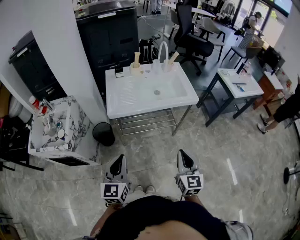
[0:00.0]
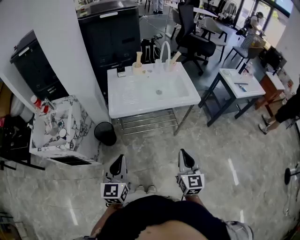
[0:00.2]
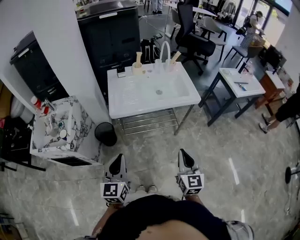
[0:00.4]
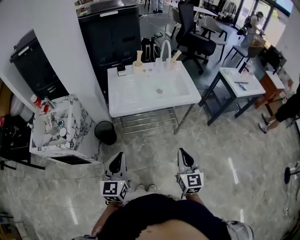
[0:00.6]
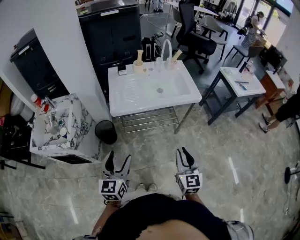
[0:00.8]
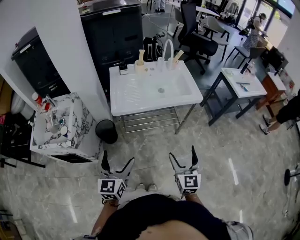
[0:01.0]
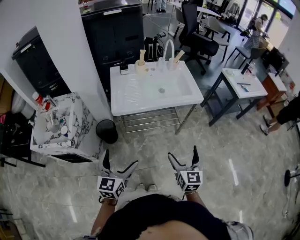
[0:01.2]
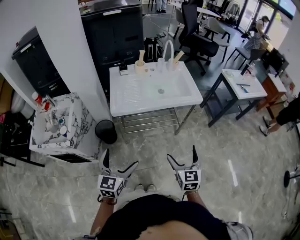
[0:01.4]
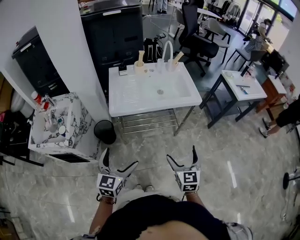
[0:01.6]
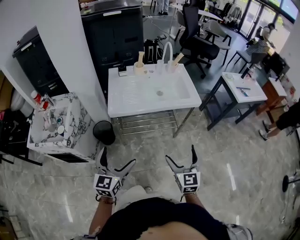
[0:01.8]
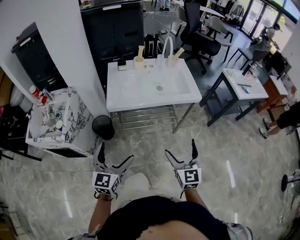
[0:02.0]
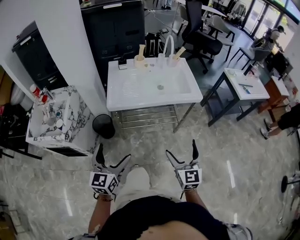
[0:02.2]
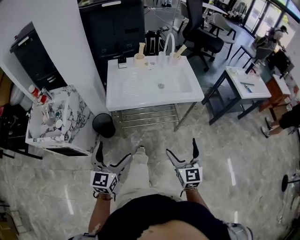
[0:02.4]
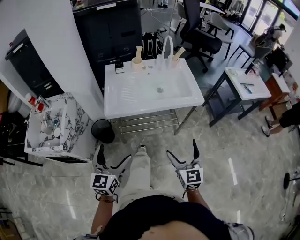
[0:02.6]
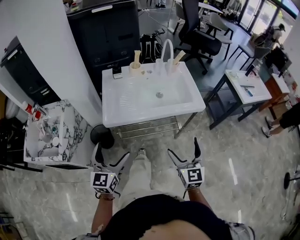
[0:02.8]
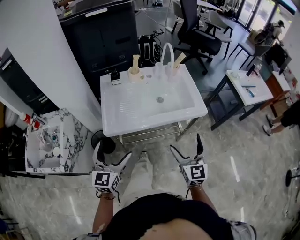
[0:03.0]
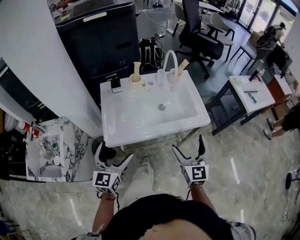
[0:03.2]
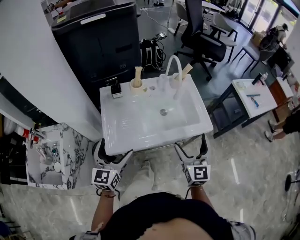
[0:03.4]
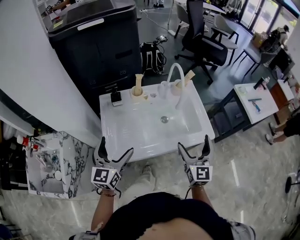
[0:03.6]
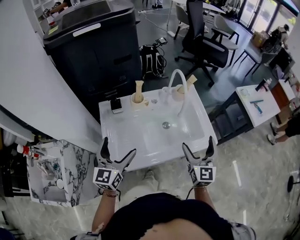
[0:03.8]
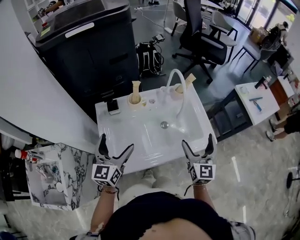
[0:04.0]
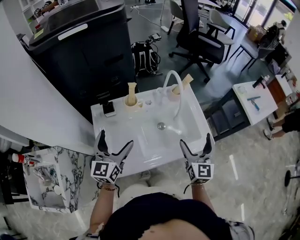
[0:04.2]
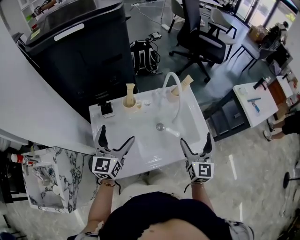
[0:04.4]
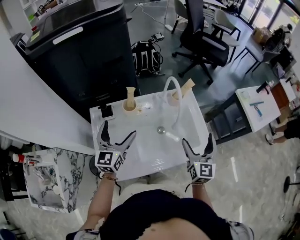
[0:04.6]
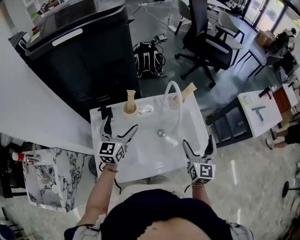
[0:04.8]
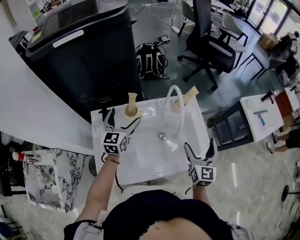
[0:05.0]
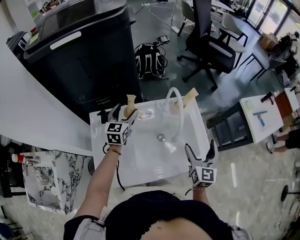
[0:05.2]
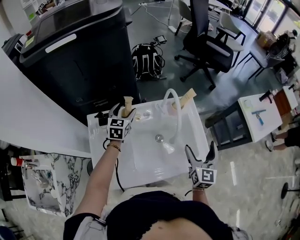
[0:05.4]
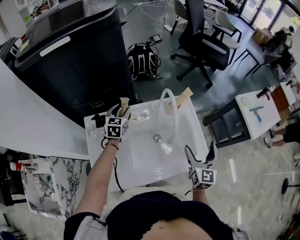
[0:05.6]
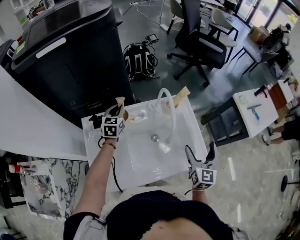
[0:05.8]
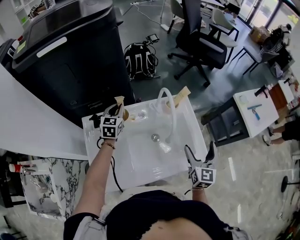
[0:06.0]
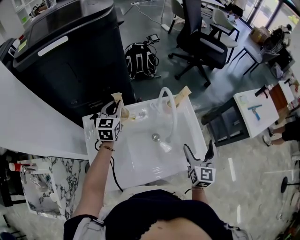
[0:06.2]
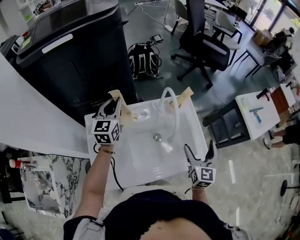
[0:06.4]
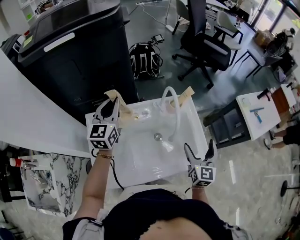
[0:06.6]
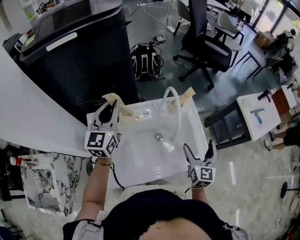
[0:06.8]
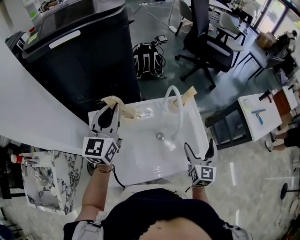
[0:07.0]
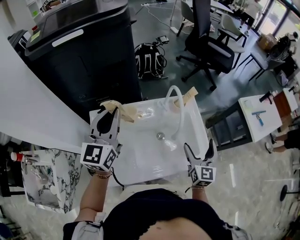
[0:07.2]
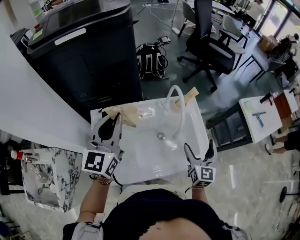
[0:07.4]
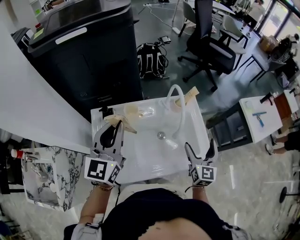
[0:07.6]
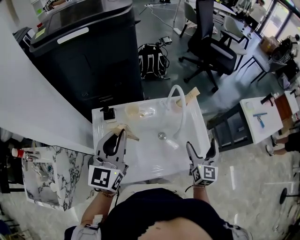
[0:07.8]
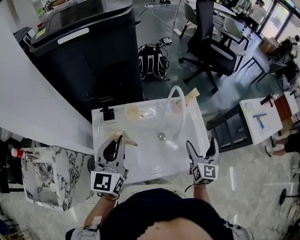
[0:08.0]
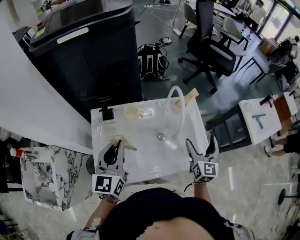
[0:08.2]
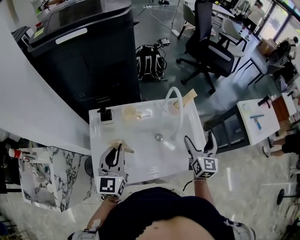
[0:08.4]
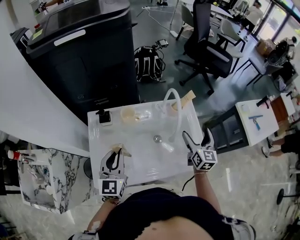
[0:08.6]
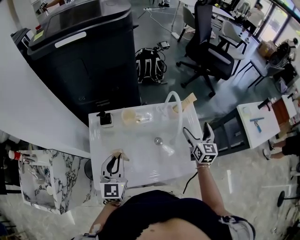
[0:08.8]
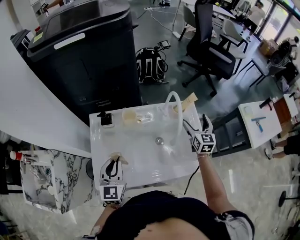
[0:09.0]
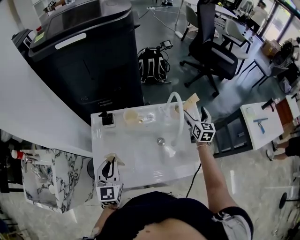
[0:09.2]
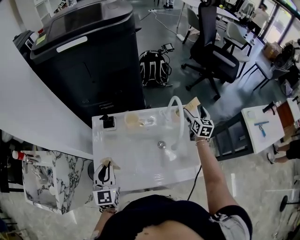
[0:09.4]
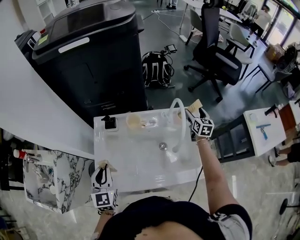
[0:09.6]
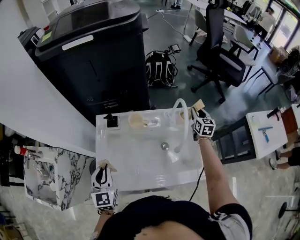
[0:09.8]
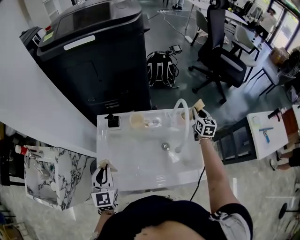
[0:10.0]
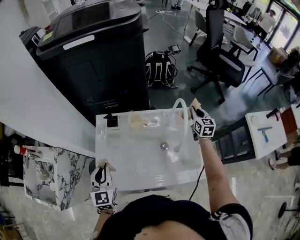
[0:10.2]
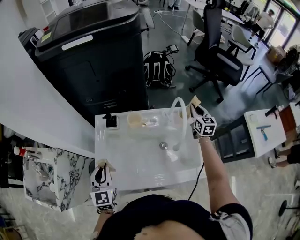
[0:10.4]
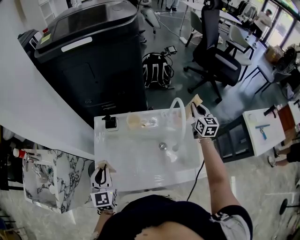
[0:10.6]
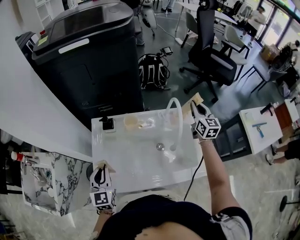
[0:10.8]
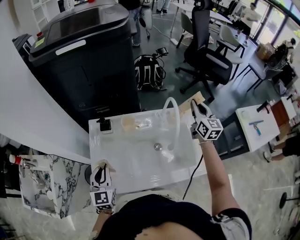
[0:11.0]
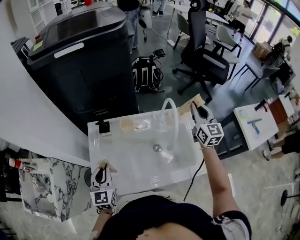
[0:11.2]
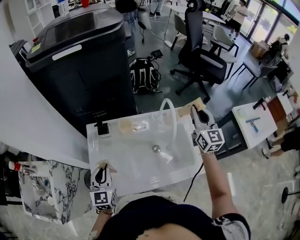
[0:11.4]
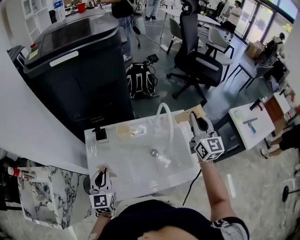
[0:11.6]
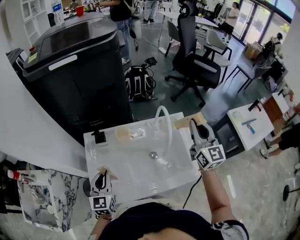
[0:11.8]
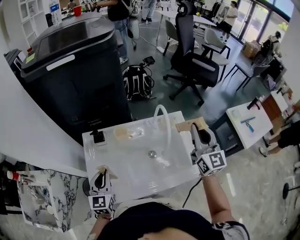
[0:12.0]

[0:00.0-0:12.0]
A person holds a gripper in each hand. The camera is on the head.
0:00.0 to 0:01.6: The left gripper opens up; the right gripper opens.
0:01.6 to 0:03.0: Both grippers travel together forward, roughly 20 cm.
0:03.0 to 0:04.4: Both grippers move forward, roughly 30 cm.
0:04.4 to 0:06.0: The right gripper moves forward and to the right, some 10 cm; the left gripper heads forward, covering some 25 cm, rotates some 20 degrees, and closes.
0:06.0 to 0:07.6: The left gripper moves upward and backward, roughly 30 cm, and swivels some 30 degrees.
0:07.6 to 0:09.0: The left gripper heads downward and backward, covering approximately 20 cm. The right gripper moves forward, roughly 15 cm.
0:09.0 to 0:10.4: The right gripper moves forward, about 10 cm, and closes; the left gripper heads to the left, covering approximately 5 cm.
0:10.4 to 0:12.0: The right gripper moves backward and upward, some 25 cm, and turns by about 20 degrees.

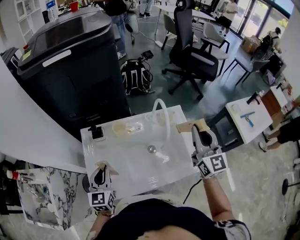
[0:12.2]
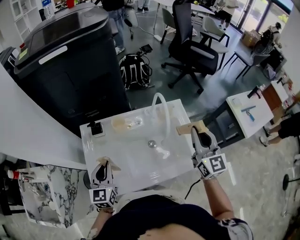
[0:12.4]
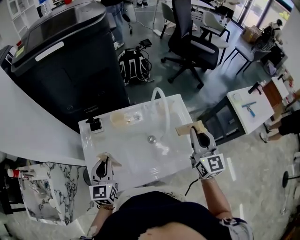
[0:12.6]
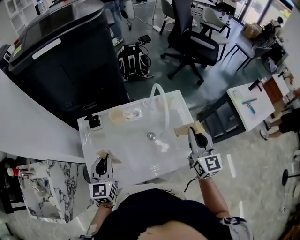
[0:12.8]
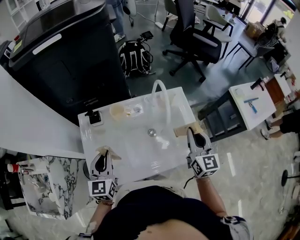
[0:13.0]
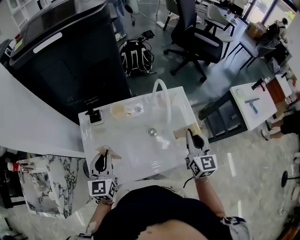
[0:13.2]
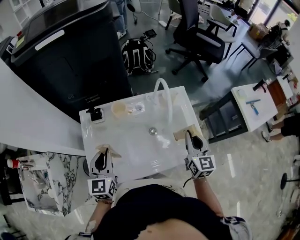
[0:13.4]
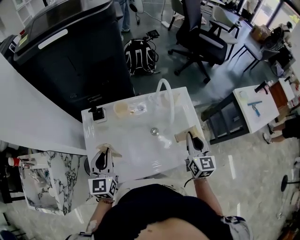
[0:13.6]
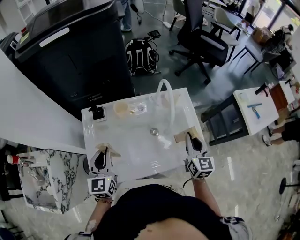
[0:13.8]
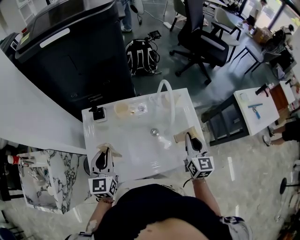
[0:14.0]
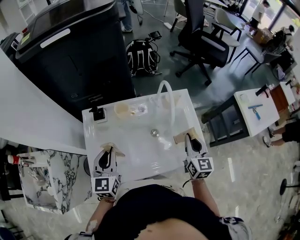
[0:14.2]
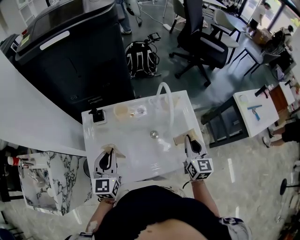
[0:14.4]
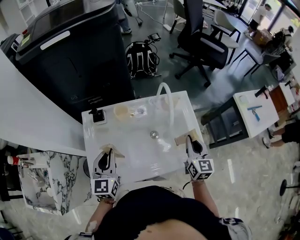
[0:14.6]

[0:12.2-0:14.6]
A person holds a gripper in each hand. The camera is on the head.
0:12.2 to 0:13.4: The right gripper travels downward by roughly 15 cm.
0:13.4 to 0:14.6: The grippers make only small movements.

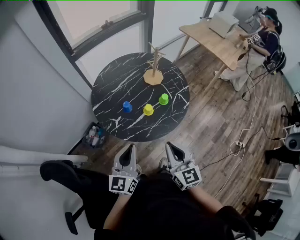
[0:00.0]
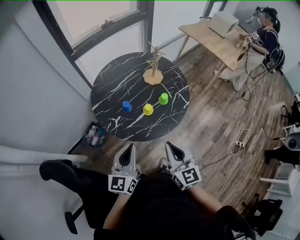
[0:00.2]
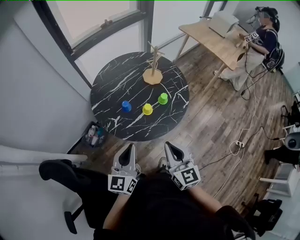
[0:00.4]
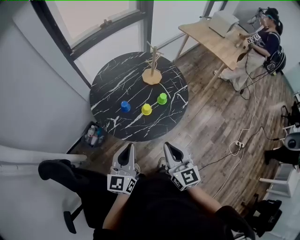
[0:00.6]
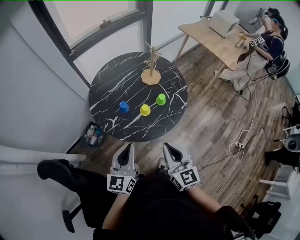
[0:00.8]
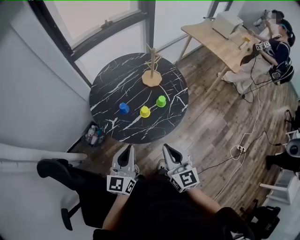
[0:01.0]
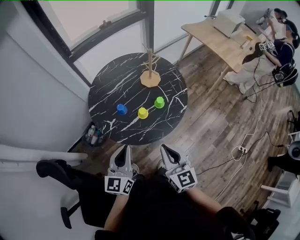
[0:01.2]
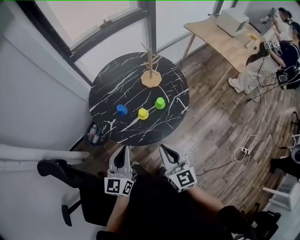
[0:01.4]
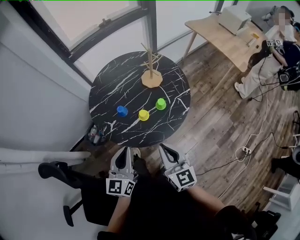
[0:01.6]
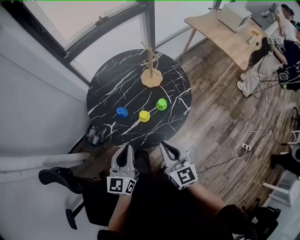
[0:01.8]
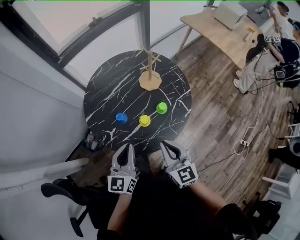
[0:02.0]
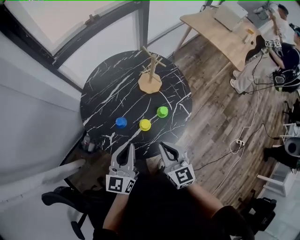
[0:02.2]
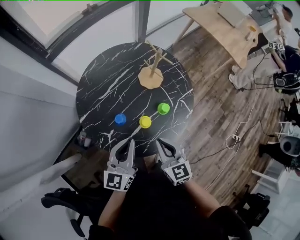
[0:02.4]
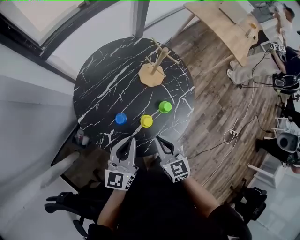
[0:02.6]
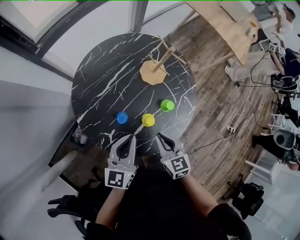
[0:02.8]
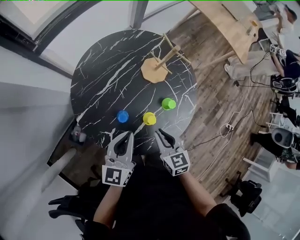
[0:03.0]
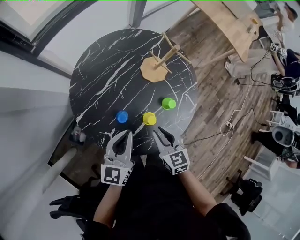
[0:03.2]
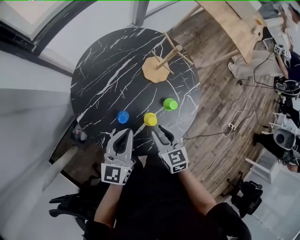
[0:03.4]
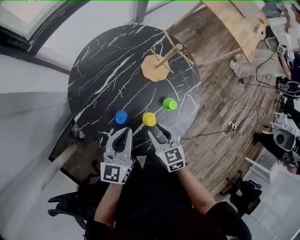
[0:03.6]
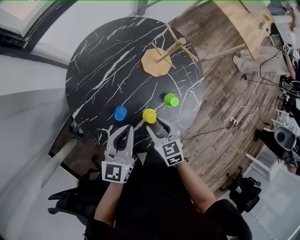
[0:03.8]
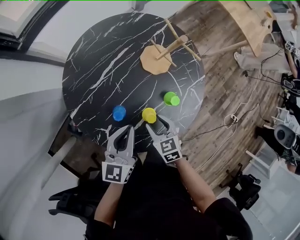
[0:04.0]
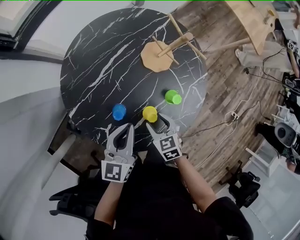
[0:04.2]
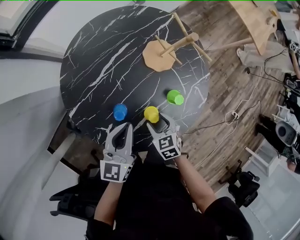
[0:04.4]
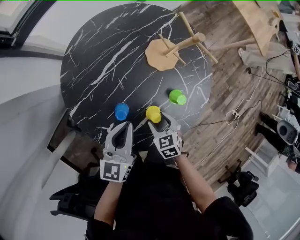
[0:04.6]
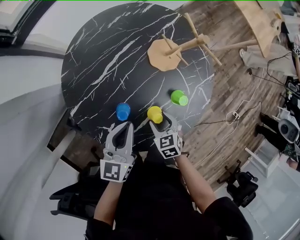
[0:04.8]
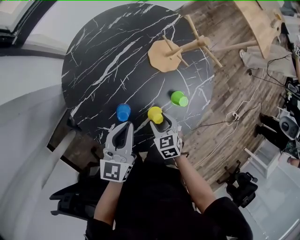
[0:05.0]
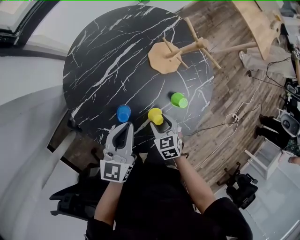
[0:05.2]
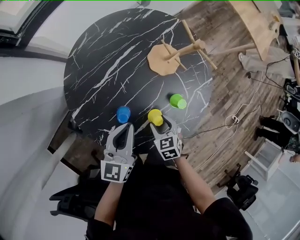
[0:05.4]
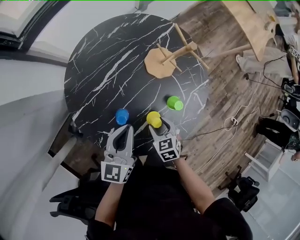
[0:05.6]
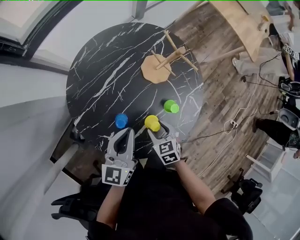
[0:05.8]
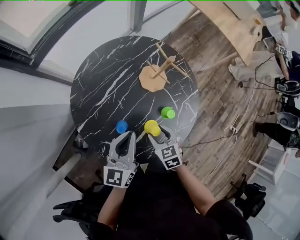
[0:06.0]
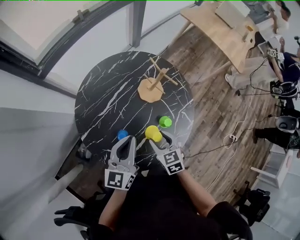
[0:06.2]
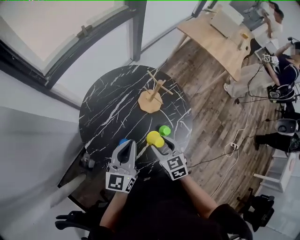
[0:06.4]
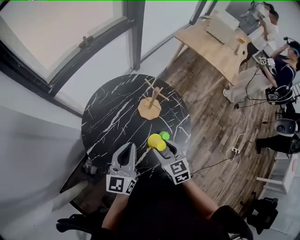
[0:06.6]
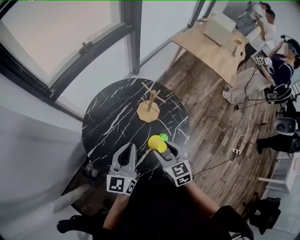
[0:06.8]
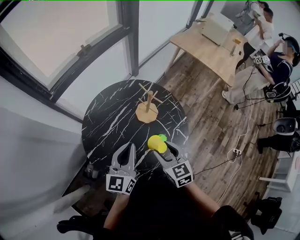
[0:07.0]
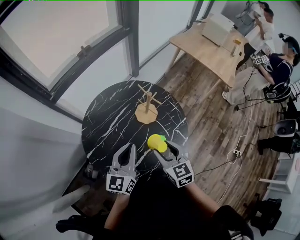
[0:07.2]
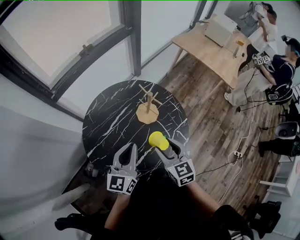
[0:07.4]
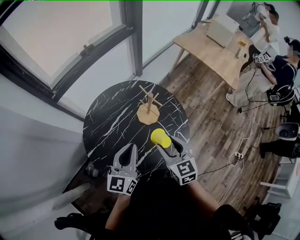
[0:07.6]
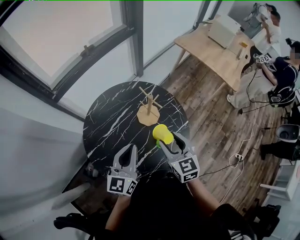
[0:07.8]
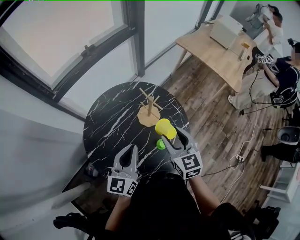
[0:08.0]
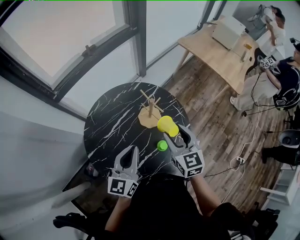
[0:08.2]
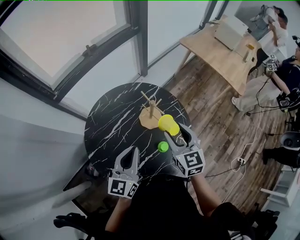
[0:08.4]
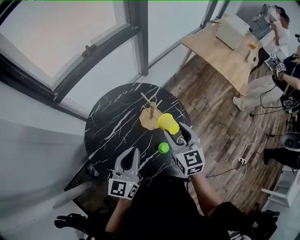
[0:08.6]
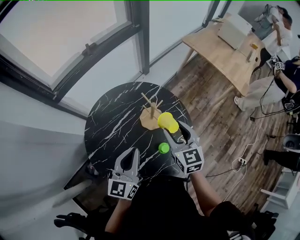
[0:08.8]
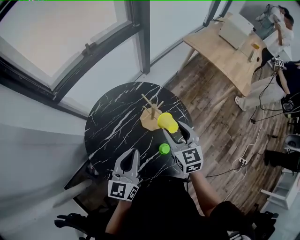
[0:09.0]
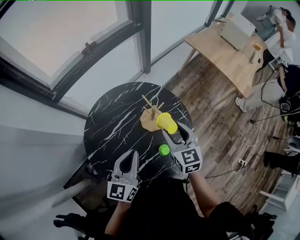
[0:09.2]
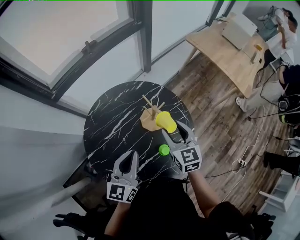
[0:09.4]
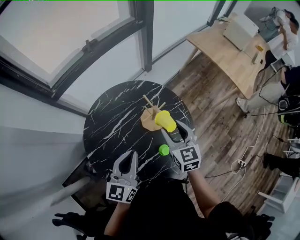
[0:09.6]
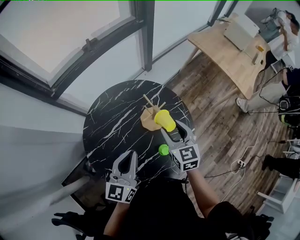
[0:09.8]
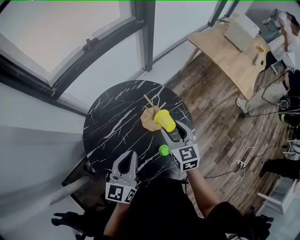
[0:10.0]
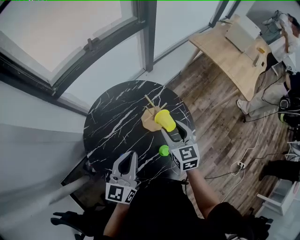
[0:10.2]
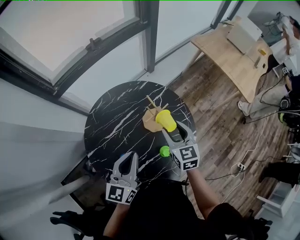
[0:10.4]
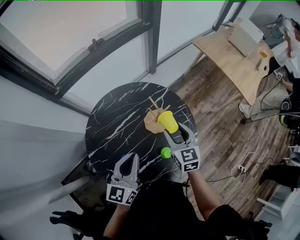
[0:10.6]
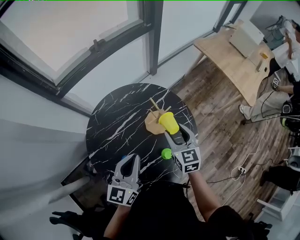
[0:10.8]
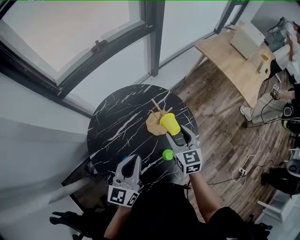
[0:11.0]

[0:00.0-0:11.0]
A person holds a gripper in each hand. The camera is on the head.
0:00.0 to 0:01.6: The right gripper is displaced to the right and forward by approximately 10 cm. The left gripper is displaced to the right by about 5 cm.
0:01.6 to 0:03.2: The grippers both shift forward, downward and to the left by some 25 cm. The right gripper turns by some 30 degrees.
0:03.2 to 0:04.8: The right gripper travels downward by approximately 15 cm, turns by some 30 degrees, and opens its fingers. The left gripper is displaced downward by roughly 10 cm.
0:04.8 to 0:06.2: Both grippers travel together upward, some 15 cm.
0:06.2 to 0:07.8: The left gripper travels upward by approximately 10 cm. Meanwhile the right gripper heads upward and to the right, covering about 20 cm, and changes its angle by approximately 20 degrees.
0:07.8 to 0:09.4: The right gripper moves forward, roughly 10 cm; the left gripper moves approximately 5 cm.
0:09.4 to 0:11.0: The grippers make only small movements.
